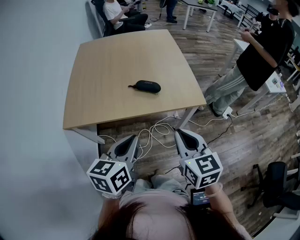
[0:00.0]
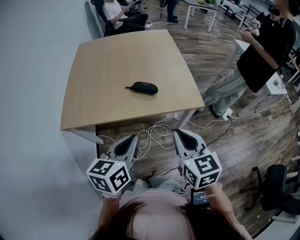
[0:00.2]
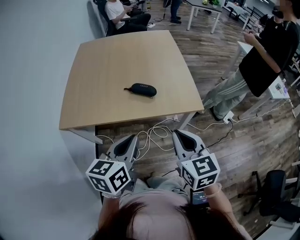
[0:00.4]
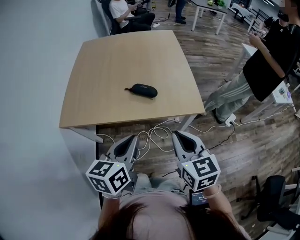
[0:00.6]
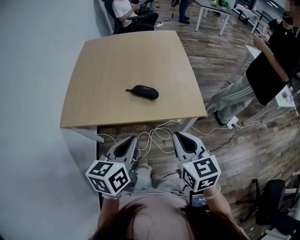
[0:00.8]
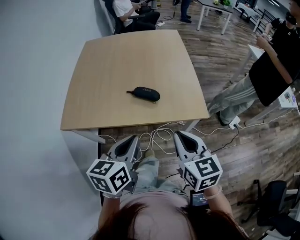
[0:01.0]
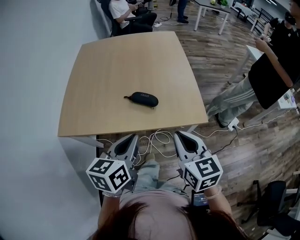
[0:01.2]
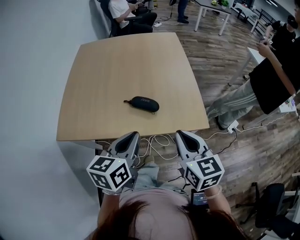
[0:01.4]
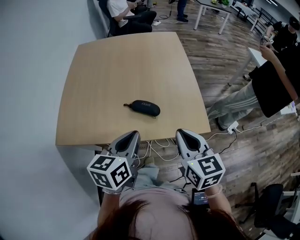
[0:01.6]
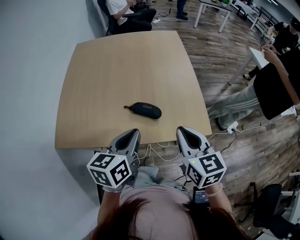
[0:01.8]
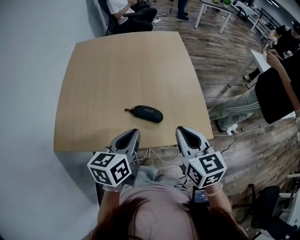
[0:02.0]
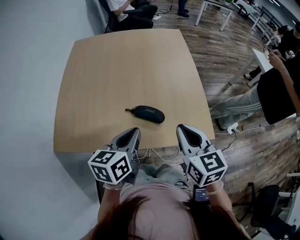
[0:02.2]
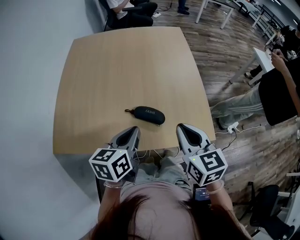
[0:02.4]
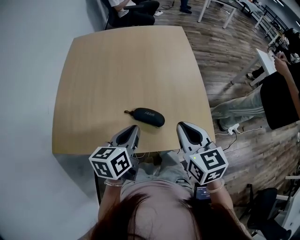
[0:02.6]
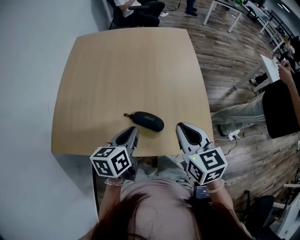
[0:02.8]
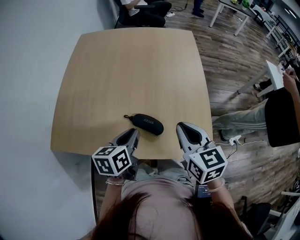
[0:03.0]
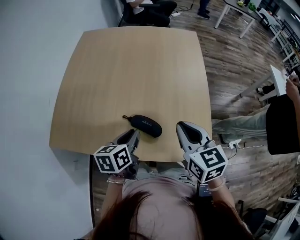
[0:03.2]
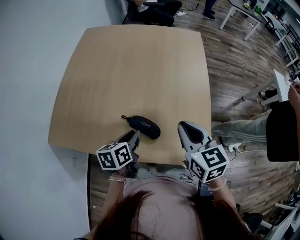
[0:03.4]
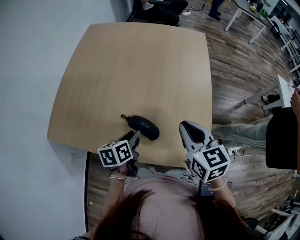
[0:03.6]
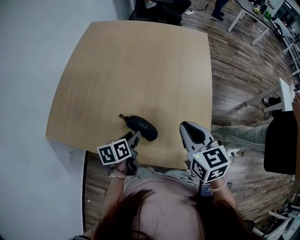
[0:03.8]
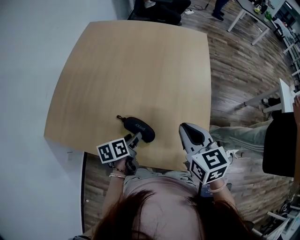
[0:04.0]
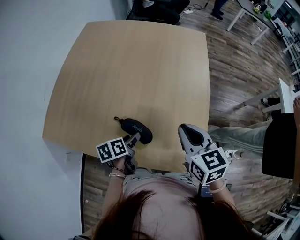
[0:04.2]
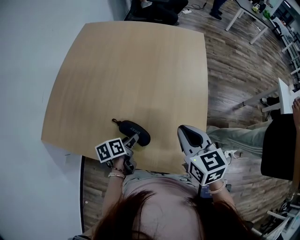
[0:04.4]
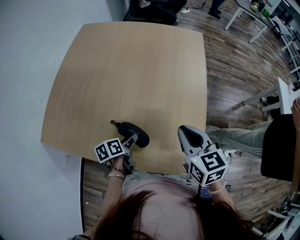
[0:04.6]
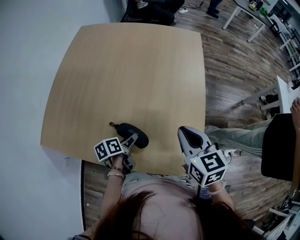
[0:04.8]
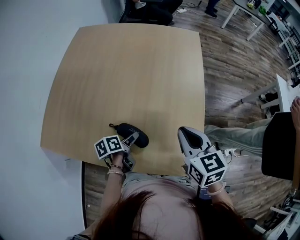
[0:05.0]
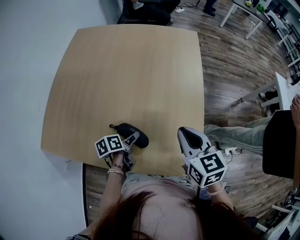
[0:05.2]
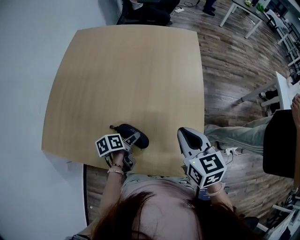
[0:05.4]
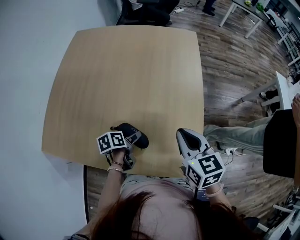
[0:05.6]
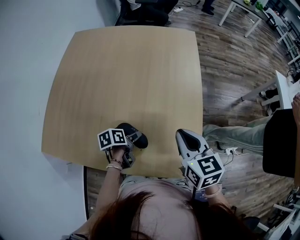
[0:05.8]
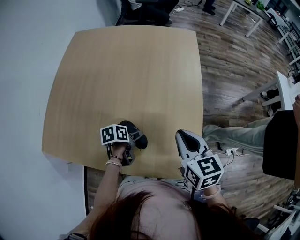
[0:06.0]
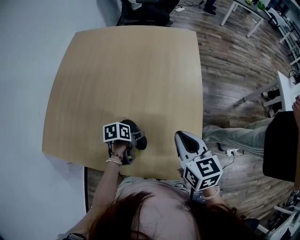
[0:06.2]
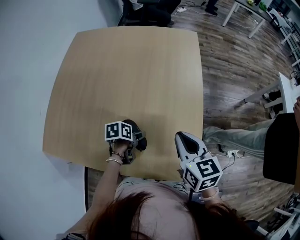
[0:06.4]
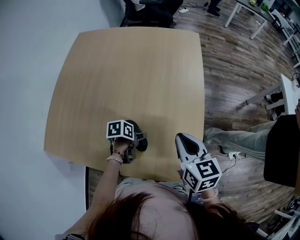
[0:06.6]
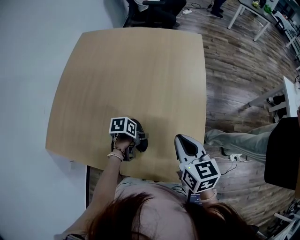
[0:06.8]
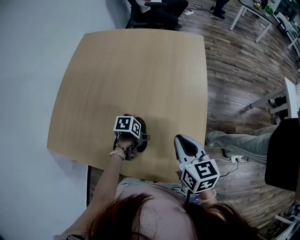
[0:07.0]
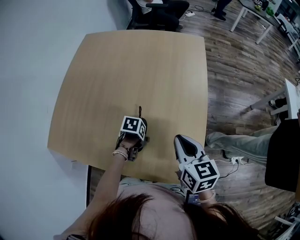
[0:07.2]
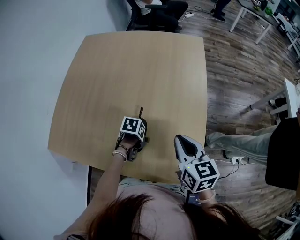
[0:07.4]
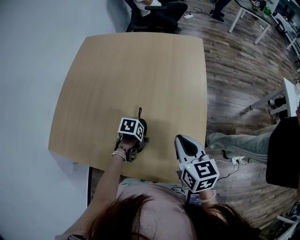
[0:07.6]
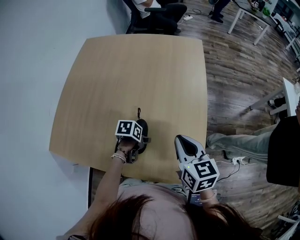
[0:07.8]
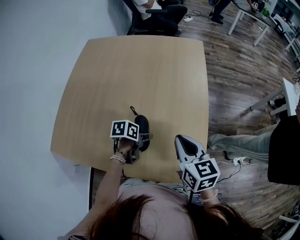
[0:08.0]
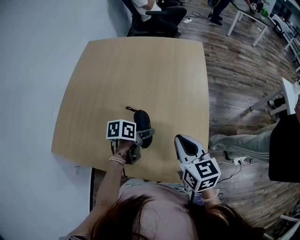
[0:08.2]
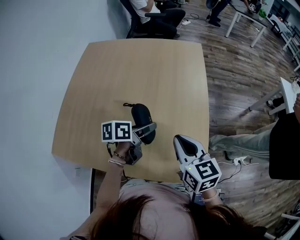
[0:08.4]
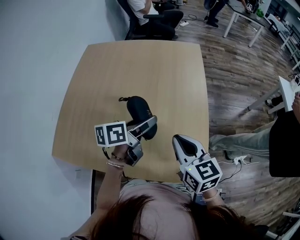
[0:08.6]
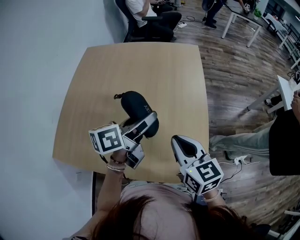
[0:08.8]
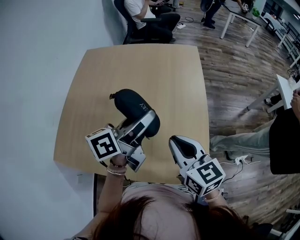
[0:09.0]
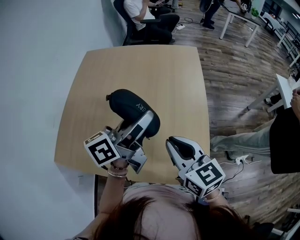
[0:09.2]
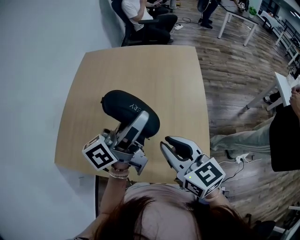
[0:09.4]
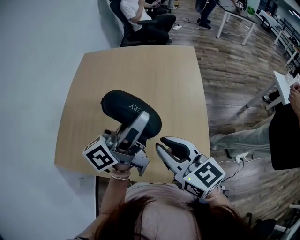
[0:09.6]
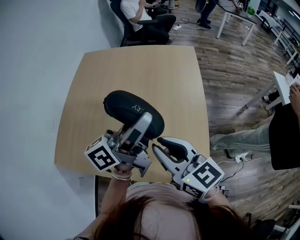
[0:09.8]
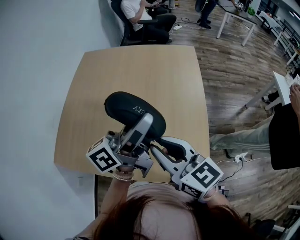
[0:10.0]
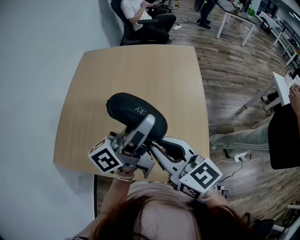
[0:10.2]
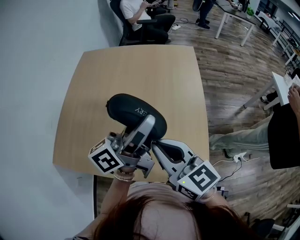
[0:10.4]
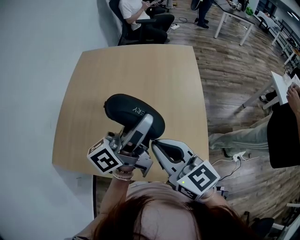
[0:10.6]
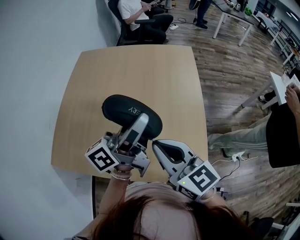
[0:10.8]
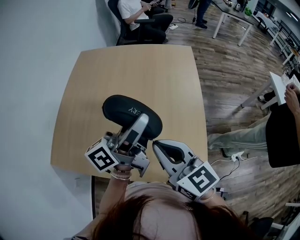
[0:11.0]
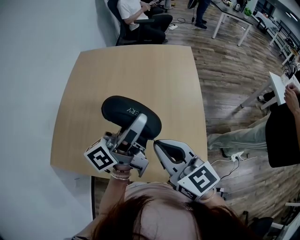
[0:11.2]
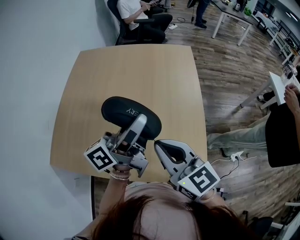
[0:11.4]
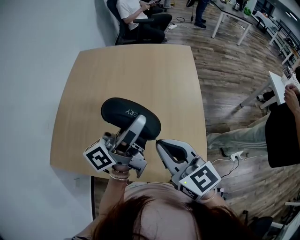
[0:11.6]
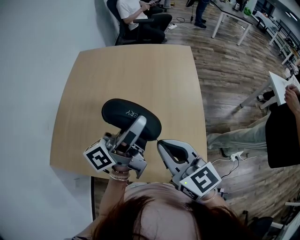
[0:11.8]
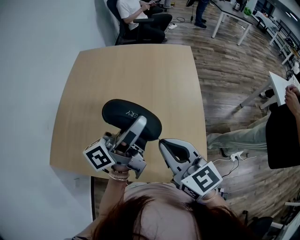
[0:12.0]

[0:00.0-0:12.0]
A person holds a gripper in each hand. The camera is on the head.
0:00.0 to 0:01.6: Both grippers move forward, approximately 20 cm.
0:01.6 to 0:03.0: The left gripper travels forward and downward by approximately 15 cm. Meanwhile the right gripper is displaced forward by approximately 15 cm.
0:03.0 to 0:04.4: The left gripper travels downward by about 15 cm, rotates approximately 30 degrees, and opens its fingers. Meanwhile the right gripper is displaced forward and to the right by some 10 cm.
0:04.4 to 0:06.0: The left gripper is displaced forward by roughly 5 cm.
0:06.0 to 0:07.6: The left gripper swivels roughly 30 degrees.
0:07.6 to 0:09.0: The right gripper is displaced upward by some 5 cm. The left gripper heads upward, covering some 35 cm, and tilts its fingers some 70 degrees upward.
0:09.0 to 0:10.4: The left gripper moves upward, approximately 5 cm, and rotates approximately 20 degrees. The right gripper shifts roughly 5 cm to the left.
0:10.4 to 0:12.0: The grippers make only small movements.

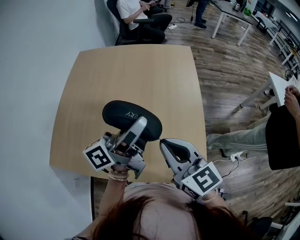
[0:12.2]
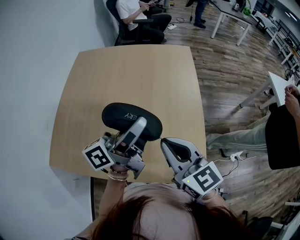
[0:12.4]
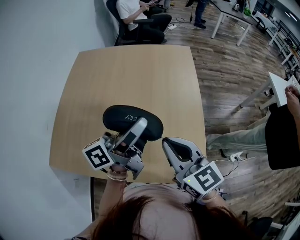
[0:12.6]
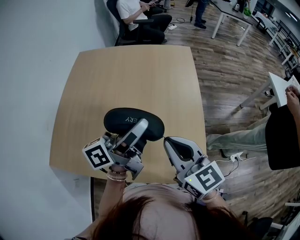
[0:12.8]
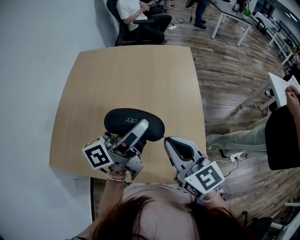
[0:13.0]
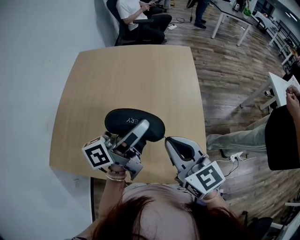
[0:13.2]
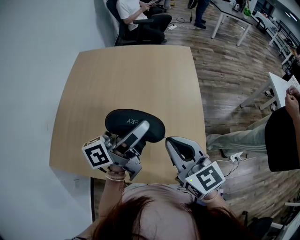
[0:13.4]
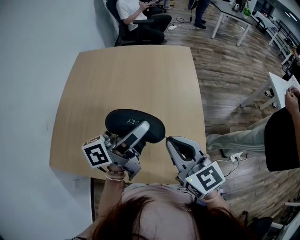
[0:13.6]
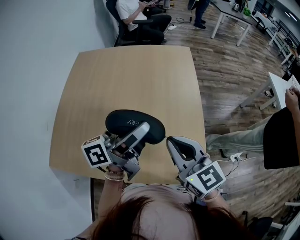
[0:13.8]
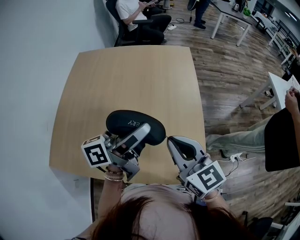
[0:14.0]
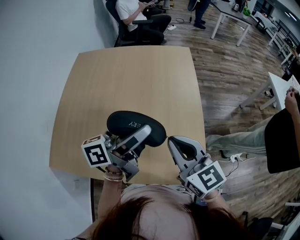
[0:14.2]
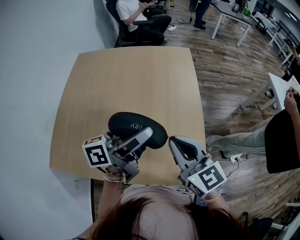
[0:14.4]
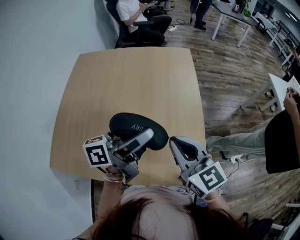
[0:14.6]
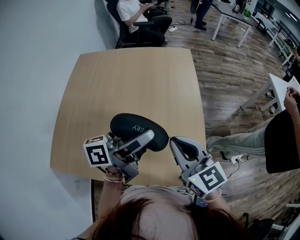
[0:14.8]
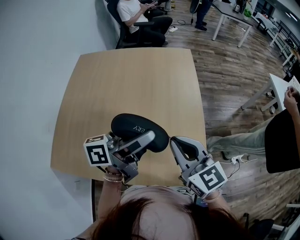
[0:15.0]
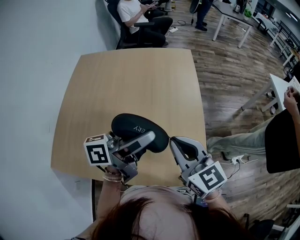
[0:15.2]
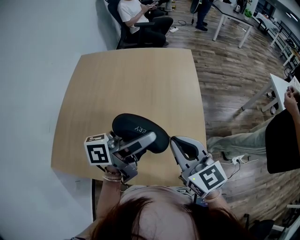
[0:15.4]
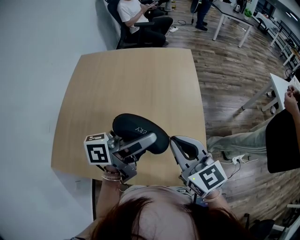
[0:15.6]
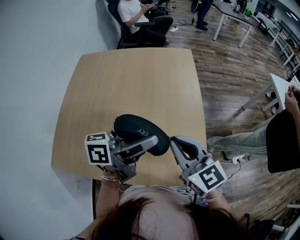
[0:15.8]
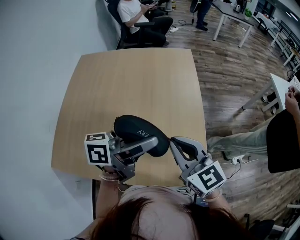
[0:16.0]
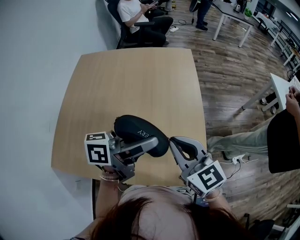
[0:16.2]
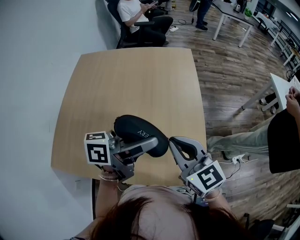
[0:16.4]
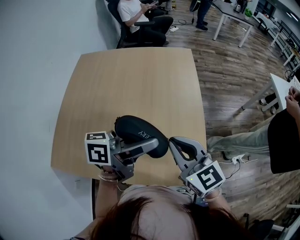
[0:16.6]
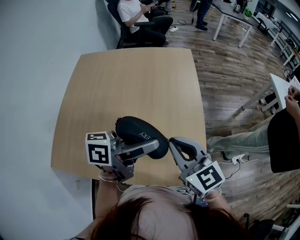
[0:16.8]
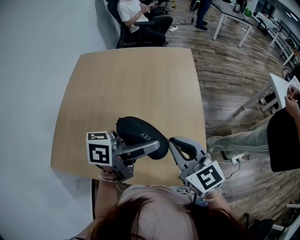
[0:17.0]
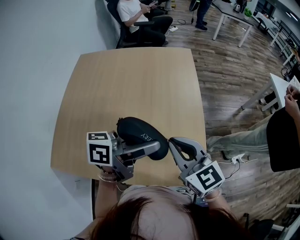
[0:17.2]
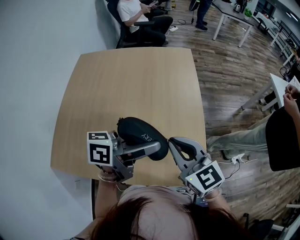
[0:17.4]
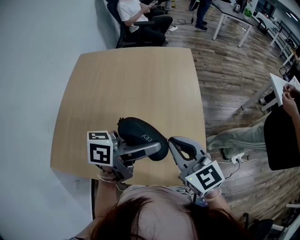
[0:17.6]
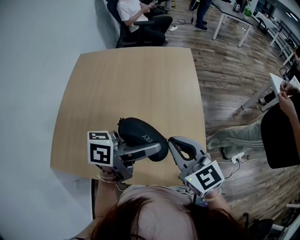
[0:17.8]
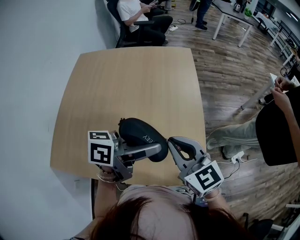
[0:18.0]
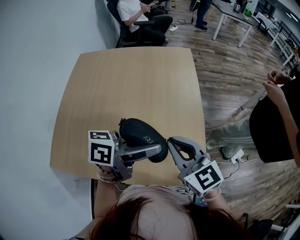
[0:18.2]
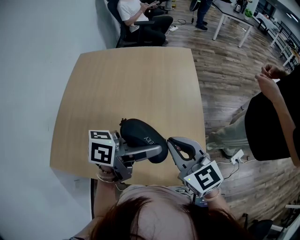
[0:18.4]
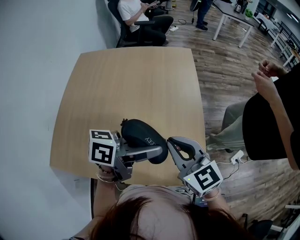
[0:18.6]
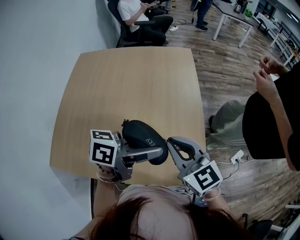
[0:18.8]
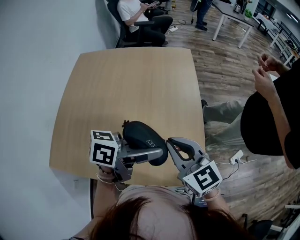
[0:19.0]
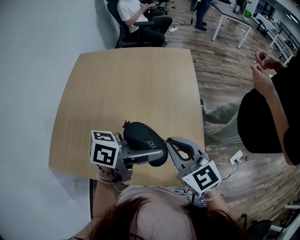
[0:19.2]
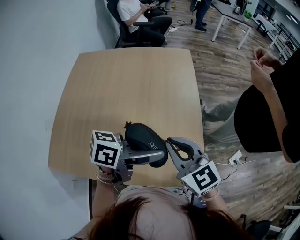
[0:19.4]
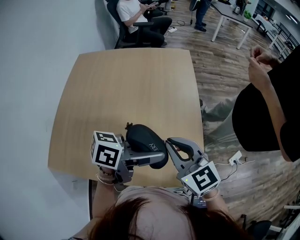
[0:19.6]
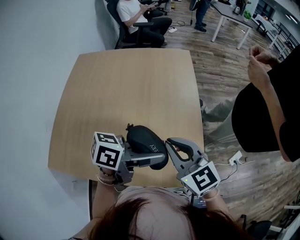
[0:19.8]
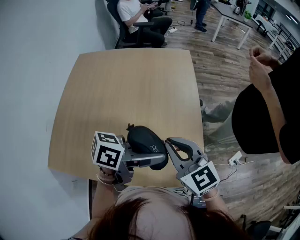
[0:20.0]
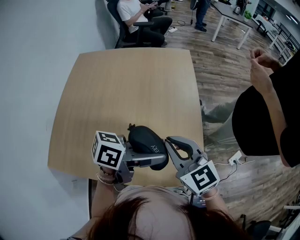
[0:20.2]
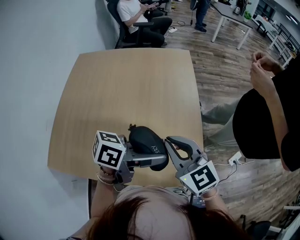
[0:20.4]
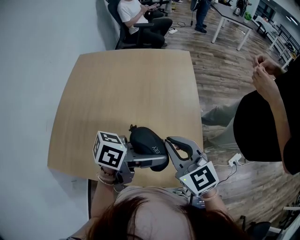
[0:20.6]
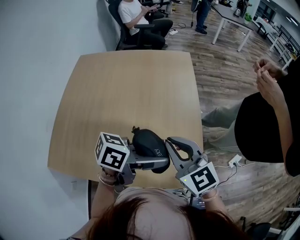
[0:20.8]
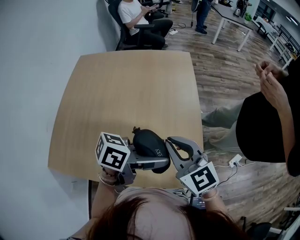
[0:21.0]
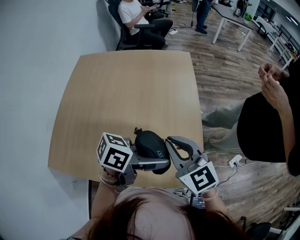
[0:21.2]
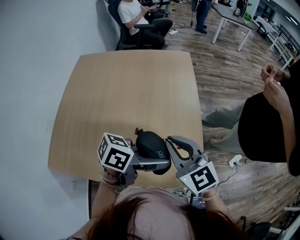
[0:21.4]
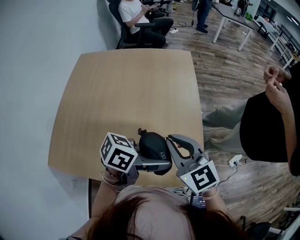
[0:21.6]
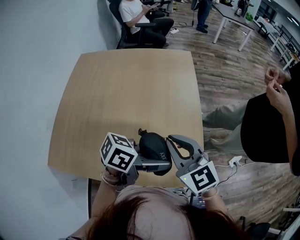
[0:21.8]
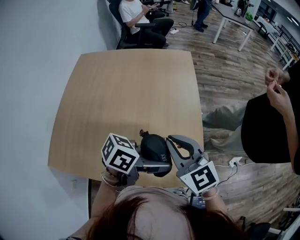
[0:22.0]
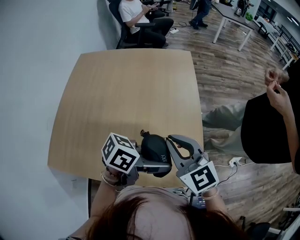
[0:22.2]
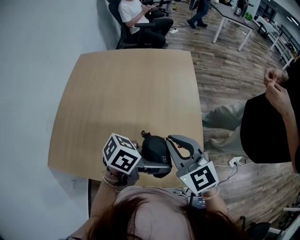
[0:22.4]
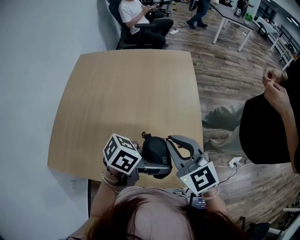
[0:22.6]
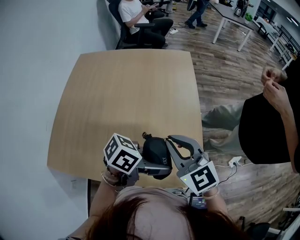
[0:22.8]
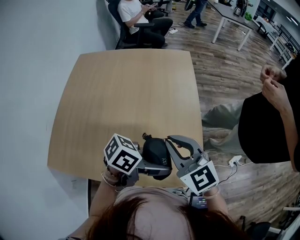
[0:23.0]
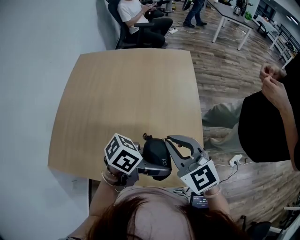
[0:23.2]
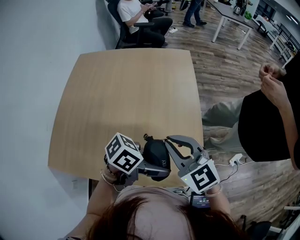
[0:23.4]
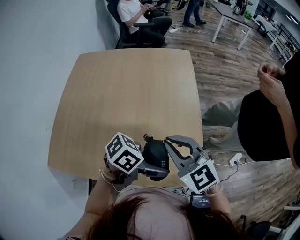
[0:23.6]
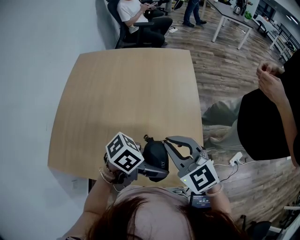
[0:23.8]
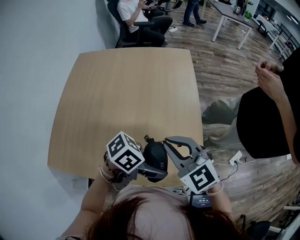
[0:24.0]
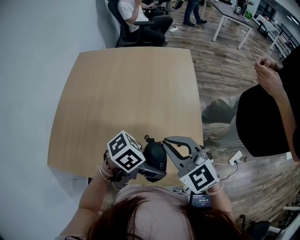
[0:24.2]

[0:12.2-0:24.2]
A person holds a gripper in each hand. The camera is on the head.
0:12.2 to 0:13.8: There are only small adjustments of the grippers.
0:13.8 to 0:15.2: The grippers stay close to where they were, moving slightly.
0:15.2 to 0:16.6: The grippers move only a little.
0:16.6 to 0:19.8: The grippers move only a little.
0:19.8 to 0:21.2: The grippers stay close to where they were, moving slightly.
0:21.2 to 0:22.6: The grippers stay close to where they were, moving slightly.
0:22.6 to 0:24.2: The grippers make only small movements.
